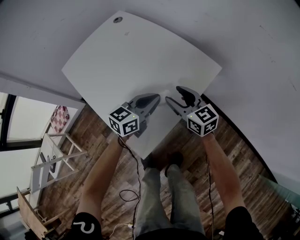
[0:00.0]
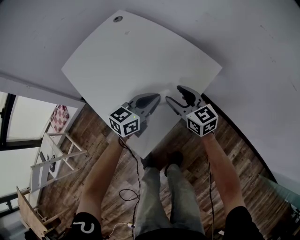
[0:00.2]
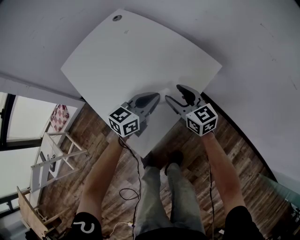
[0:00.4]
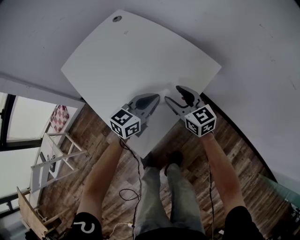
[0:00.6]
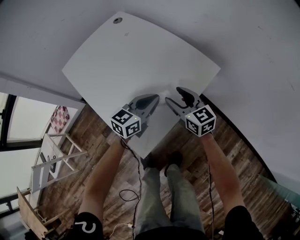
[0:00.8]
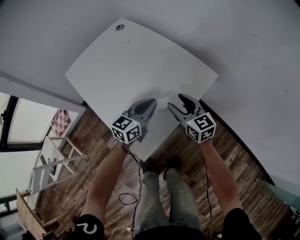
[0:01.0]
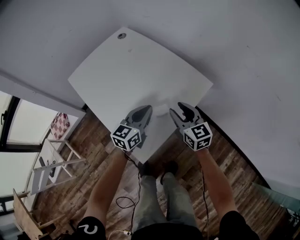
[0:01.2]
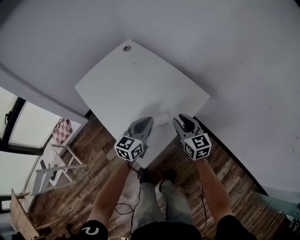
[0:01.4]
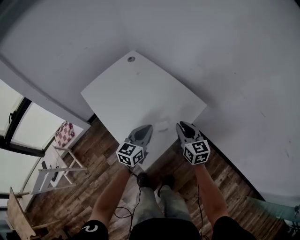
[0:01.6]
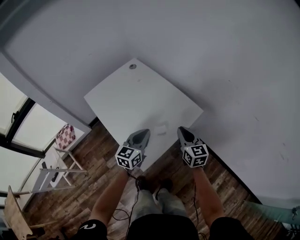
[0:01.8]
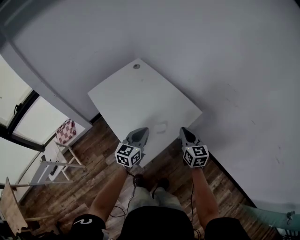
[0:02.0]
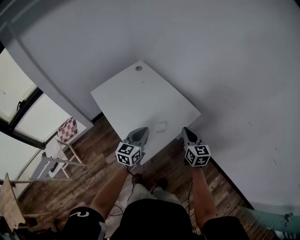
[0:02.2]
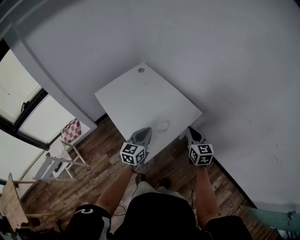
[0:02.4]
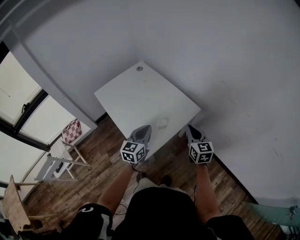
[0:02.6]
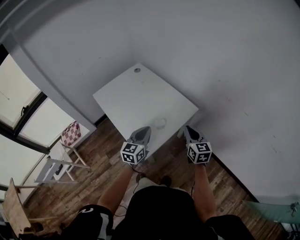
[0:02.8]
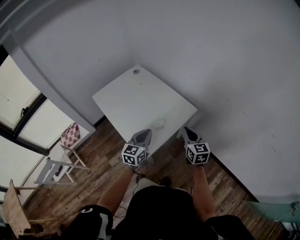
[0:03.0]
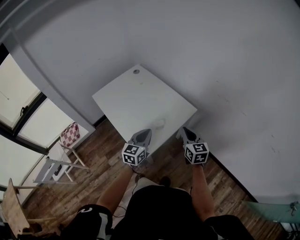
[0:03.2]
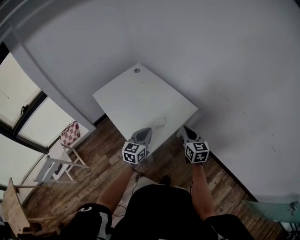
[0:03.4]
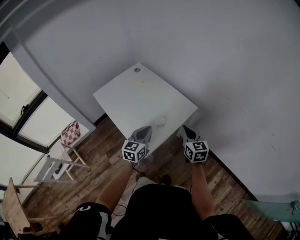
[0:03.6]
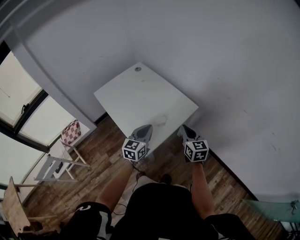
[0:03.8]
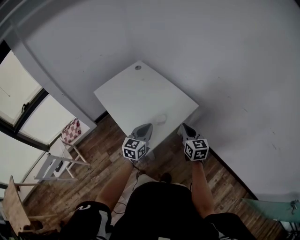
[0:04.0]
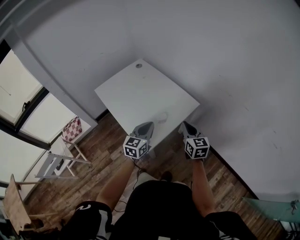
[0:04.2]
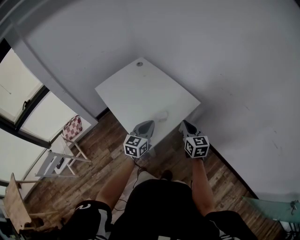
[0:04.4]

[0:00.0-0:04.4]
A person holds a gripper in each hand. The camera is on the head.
0:00.0 to 0:01.4: Both grippers move upward, approximately 10 cm. The right gripper closes.
0:01.4 to 0:03.0: The right gripper travels upward, backward and to the right by approximately 20 cm. The left gripper moves backward and upward, some 15 cm.
0:03.0 to 0:04.4: The grippers make only small movements.

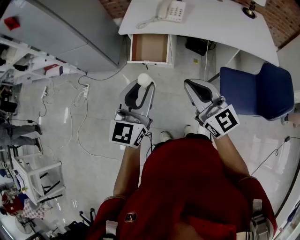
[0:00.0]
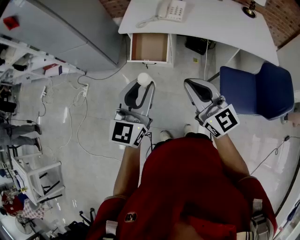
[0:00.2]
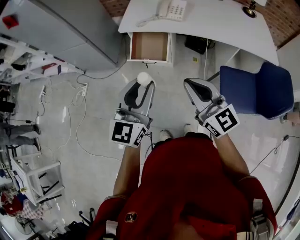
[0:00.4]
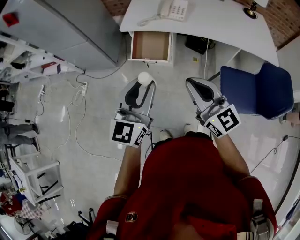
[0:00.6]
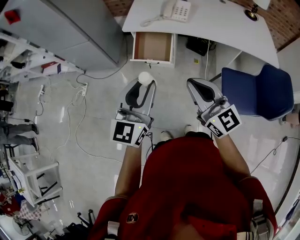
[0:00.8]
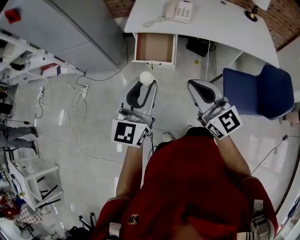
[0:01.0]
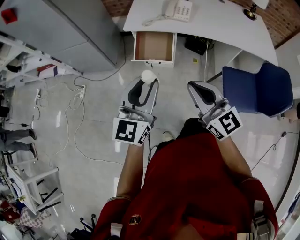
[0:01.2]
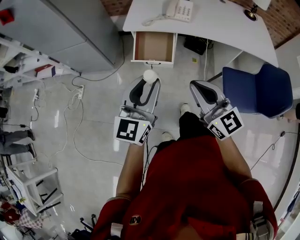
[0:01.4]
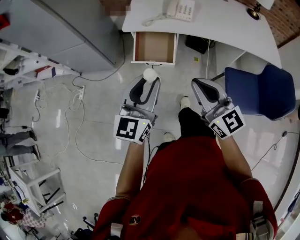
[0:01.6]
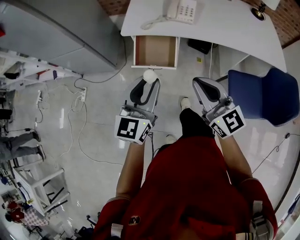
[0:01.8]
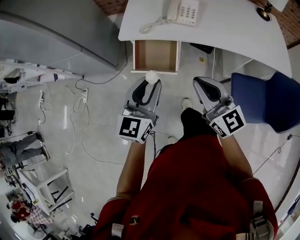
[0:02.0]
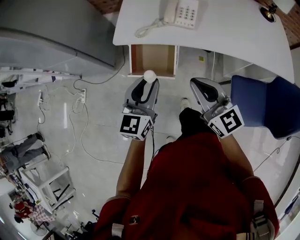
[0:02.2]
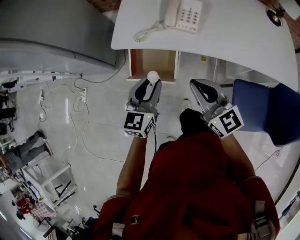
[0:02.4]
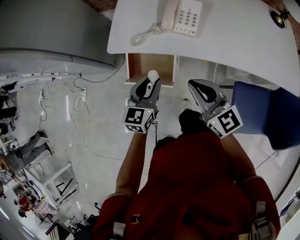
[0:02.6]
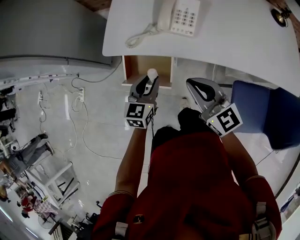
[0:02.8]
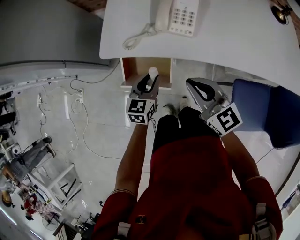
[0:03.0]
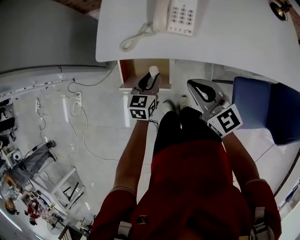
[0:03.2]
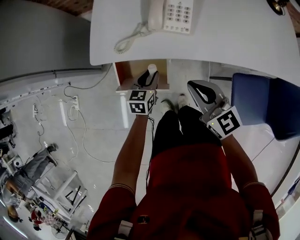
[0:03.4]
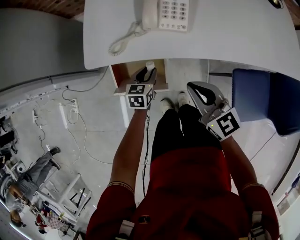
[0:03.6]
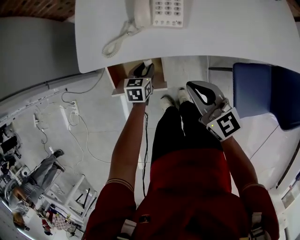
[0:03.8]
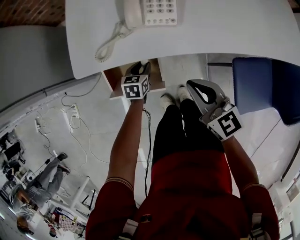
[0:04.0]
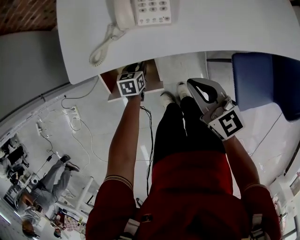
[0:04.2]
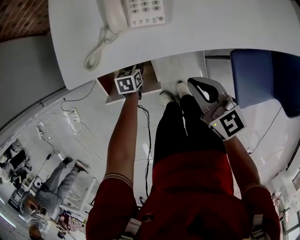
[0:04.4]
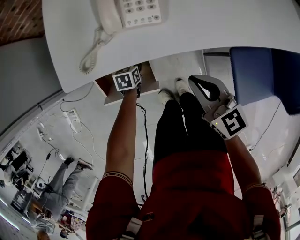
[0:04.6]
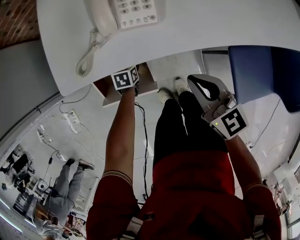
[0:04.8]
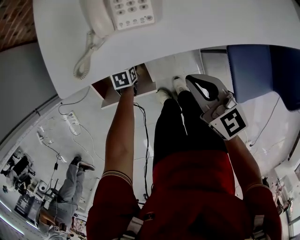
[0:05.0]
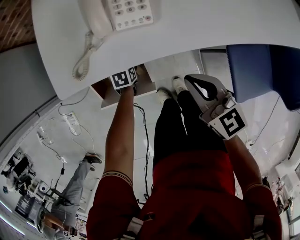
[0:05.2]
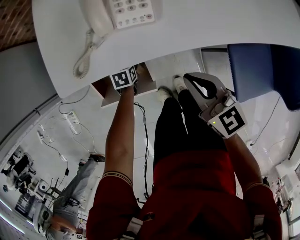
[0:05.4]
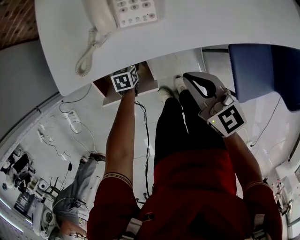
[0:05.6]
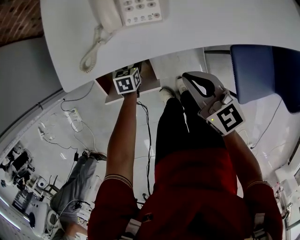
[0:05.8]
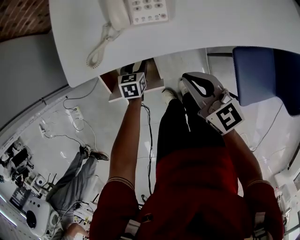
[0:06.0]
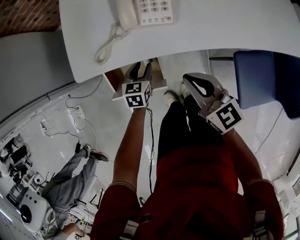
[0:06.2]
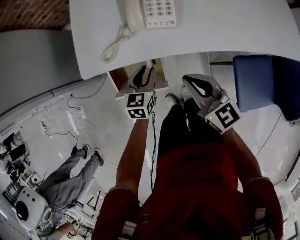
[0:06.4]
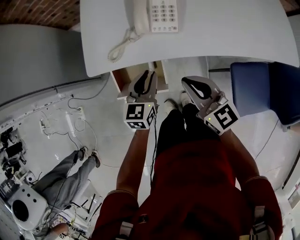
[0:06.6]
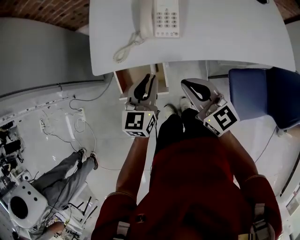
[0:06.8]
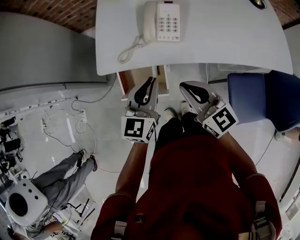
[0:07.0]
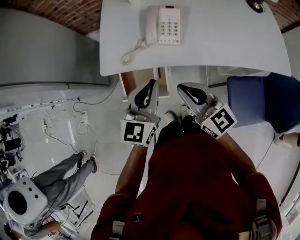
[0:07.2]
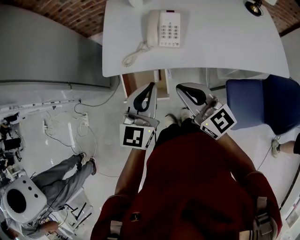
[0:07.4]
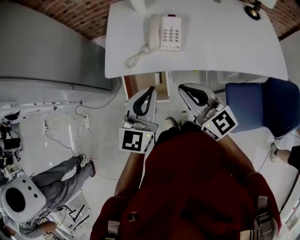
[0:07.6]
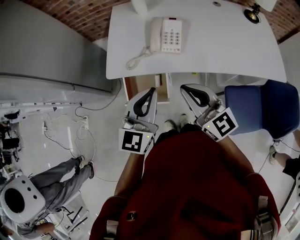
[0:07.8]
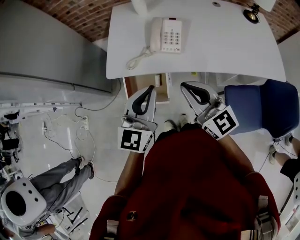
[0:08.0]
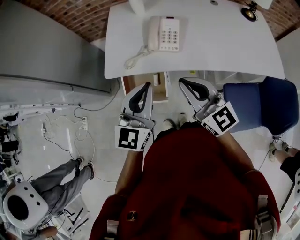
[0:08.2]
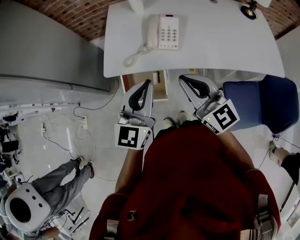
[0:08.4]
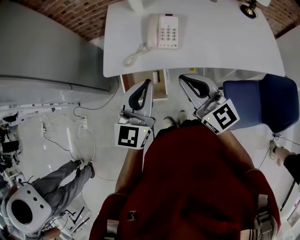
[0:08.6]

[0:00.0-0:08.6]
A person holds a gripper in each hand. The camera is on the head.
0:00.0 to 0:01.4: Both grippers move to the left, some 10 cm.
0:01.4 to 0:02.8: The left gripper moves forward and downward, roughly 40 cm, and changes its angle by some 30 degrees; the right gripper goes approximately 30 cm forward.
0:02.8 to 0:04.4: The right gripper travels downward and to the right by approximately 15 cm, and turns by about 20 degrees, while the left gripper moves downward, roughly 30 cm, and swivels roughly 30 degrees.
0:04.4 to 0:05.8: The grippers move only a little.
0:05.8 to 0:07.2: The left gripper goes approximately 40 cm upward, tips its fingers upward by some 40 degrees, and closes its fingers, while the right gripper moves upward, some 15 cm.
0:07.2 to 0:08.6: Both grippers travel together upward, approximately 10 cm.

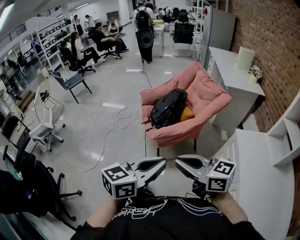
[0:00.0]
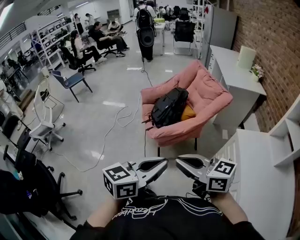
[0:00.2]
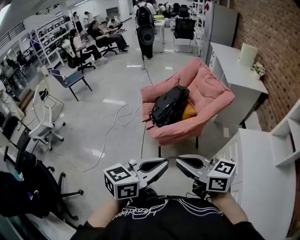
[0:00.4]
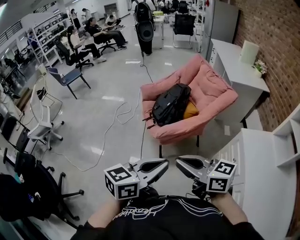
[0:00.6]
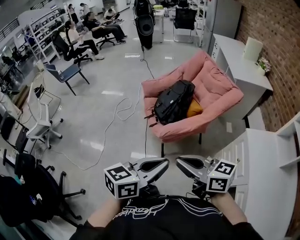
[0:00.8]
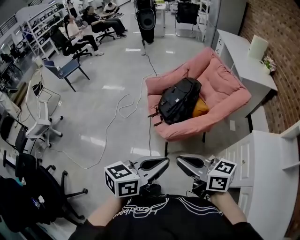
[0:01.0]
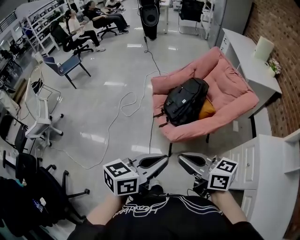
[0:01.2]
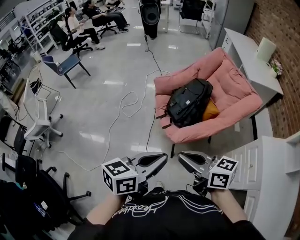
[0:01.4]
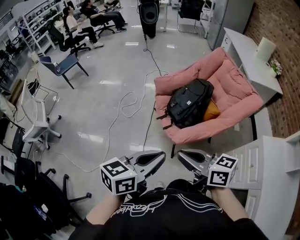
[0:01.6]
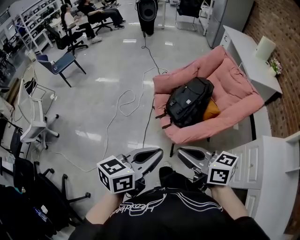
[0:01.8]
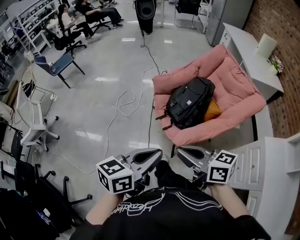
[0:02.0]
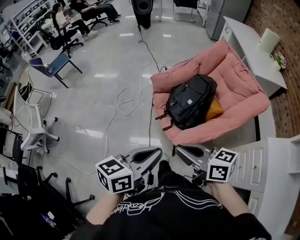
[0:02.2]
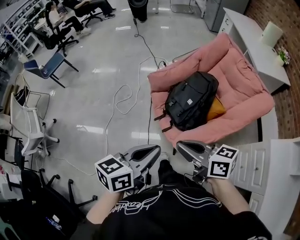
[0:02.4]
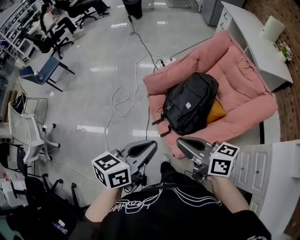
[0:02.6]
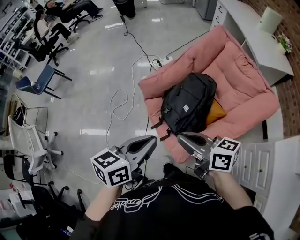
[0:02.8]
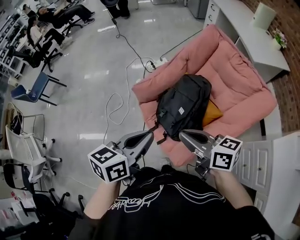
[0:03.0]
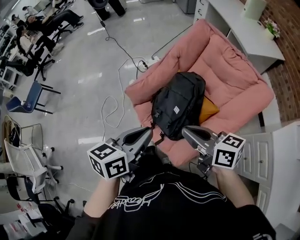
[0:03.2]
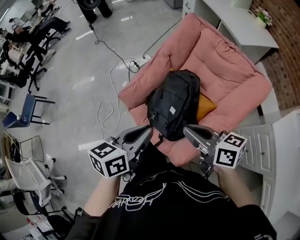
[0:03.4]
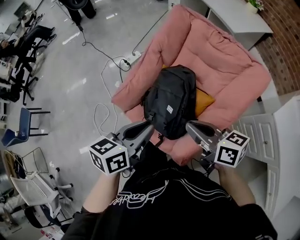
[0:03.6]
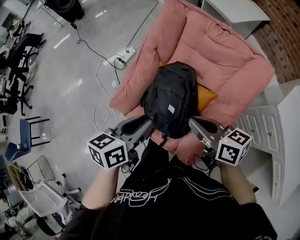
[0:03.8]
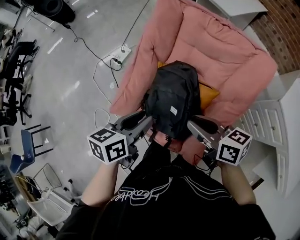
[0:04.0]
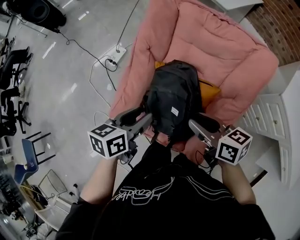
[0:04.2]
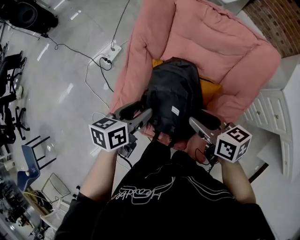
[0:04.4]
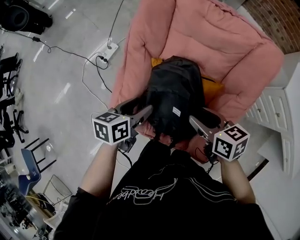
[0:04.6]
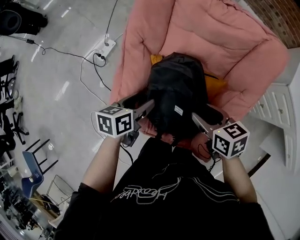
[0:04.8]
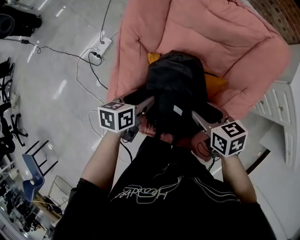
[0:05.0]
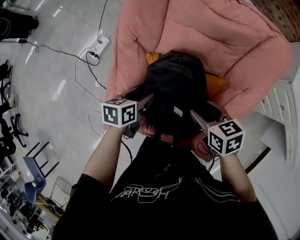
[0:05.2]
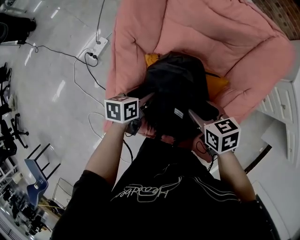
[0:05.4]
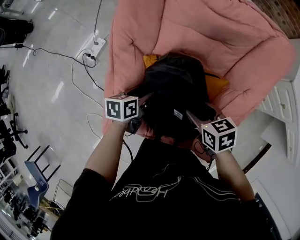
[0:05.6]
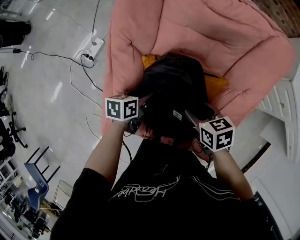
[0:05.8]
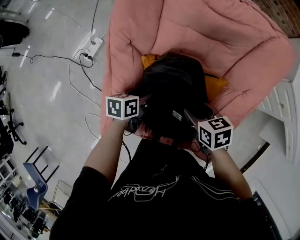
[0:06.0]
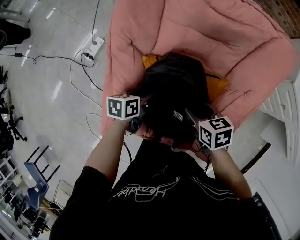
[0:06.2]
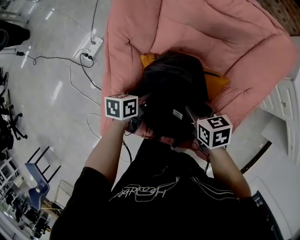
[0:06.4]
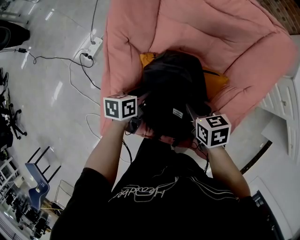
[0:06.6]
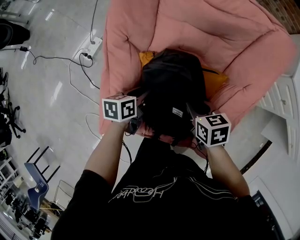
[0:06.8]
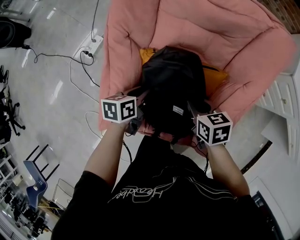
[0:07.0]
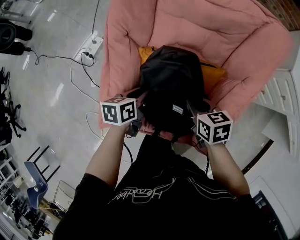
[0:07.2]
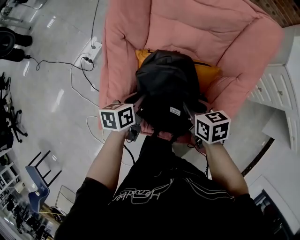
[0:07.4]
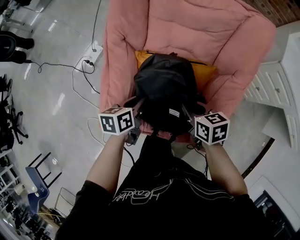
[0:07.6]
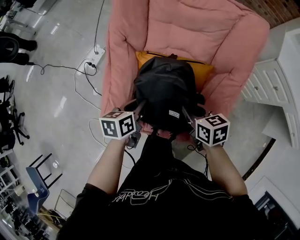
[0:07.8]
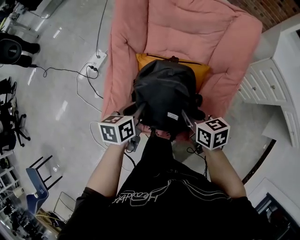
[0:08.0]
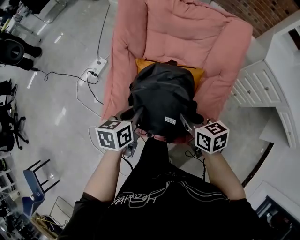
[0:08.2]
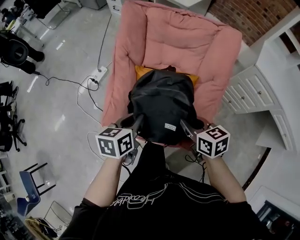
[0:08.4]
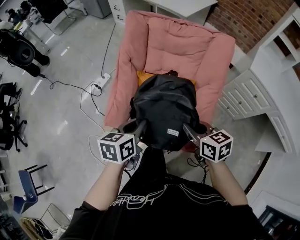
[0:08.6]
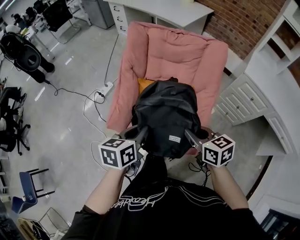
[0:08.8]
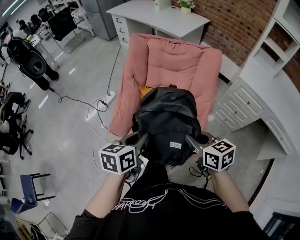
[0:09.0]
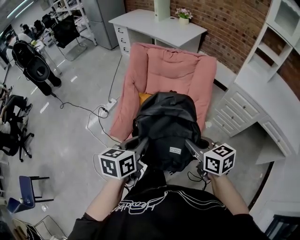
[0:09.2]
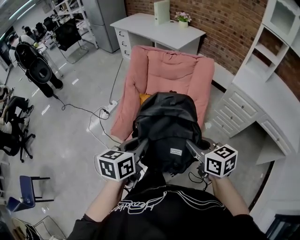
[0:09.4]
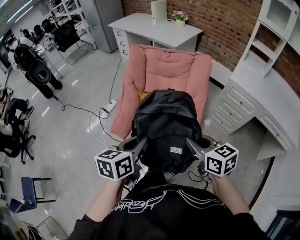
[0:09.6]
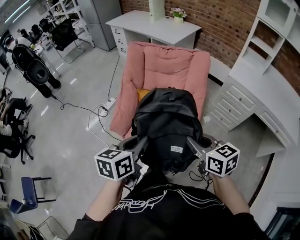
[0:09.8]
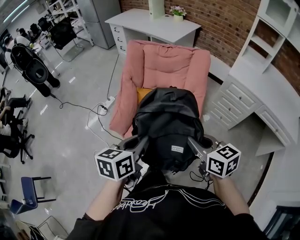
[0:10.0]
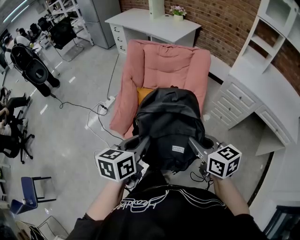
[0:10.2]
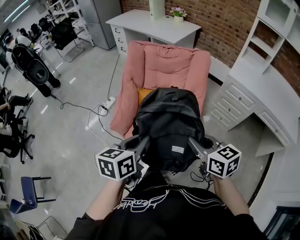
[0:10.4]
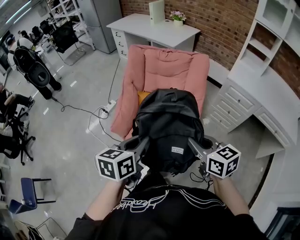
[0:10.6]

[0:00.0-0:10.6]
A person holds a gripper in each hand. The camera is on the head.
0:00.0 to 0:01.6: The grippers both shift forward and to the left by some 30 cm.
0:01.6 to 0:03.0: Both grippers move forward, about 30 cm.
0:03.0 to 0:04.6: The left gripper changes place by roughly 35 cm, changes its angle by about 40 degrees, and opens its fingers; the right gripper ends up some 25 cm from where it was, rotates about 50 degrees, and opens its fingers.
0:04.6 to 0:06.0: Both grippers move downward, roughly 15 cm.
0:06.0 to 0:07.6: The left gripper shifts approximately 10 cm upward and backward, and closes; the right gripper changes place by about 5 cm, and closes up.
0:07.6 to 0:09.0: The two grippers go roughly 30 cm upward and backward. The right gripper changes its angle by roughly 20 degrees.
0:09.0 to 0:10.6: The grippers both shift backward and upward by approximately 10 cm.
